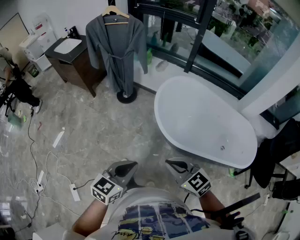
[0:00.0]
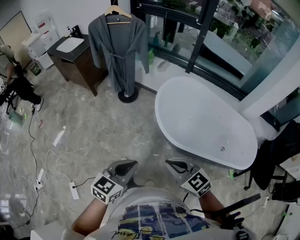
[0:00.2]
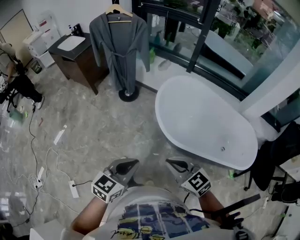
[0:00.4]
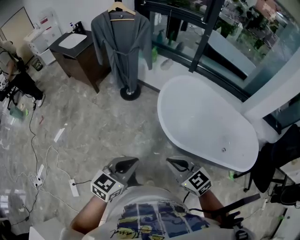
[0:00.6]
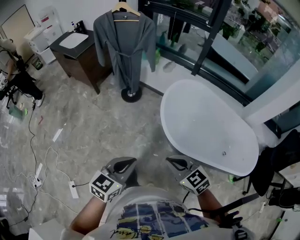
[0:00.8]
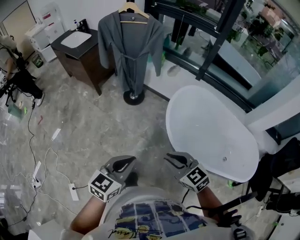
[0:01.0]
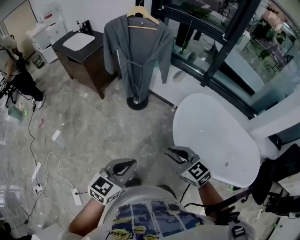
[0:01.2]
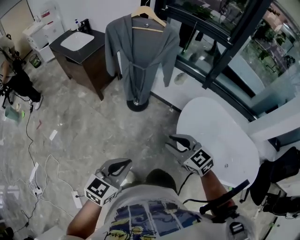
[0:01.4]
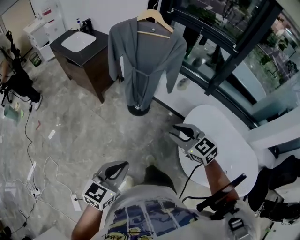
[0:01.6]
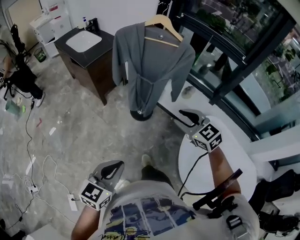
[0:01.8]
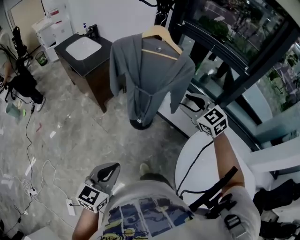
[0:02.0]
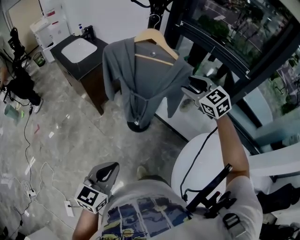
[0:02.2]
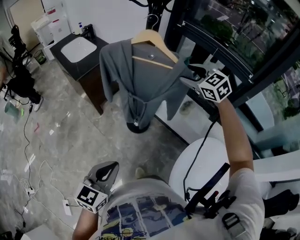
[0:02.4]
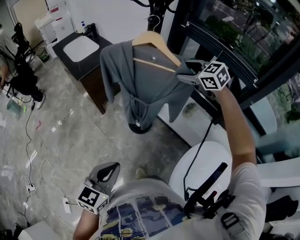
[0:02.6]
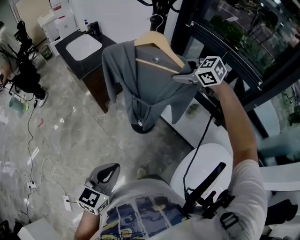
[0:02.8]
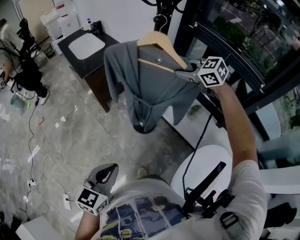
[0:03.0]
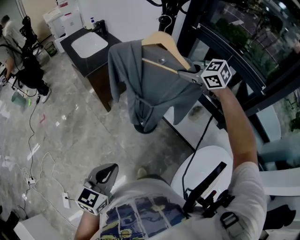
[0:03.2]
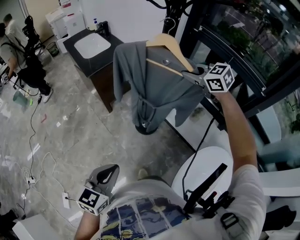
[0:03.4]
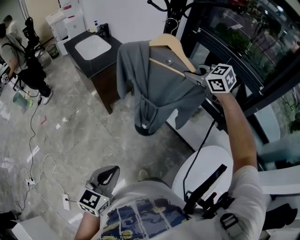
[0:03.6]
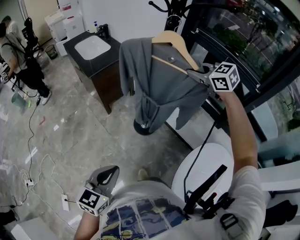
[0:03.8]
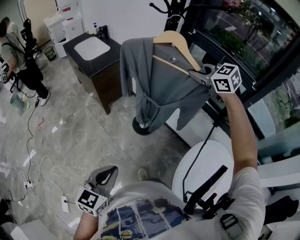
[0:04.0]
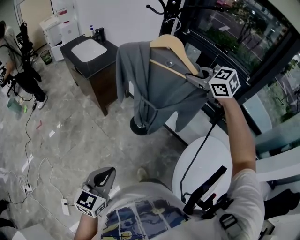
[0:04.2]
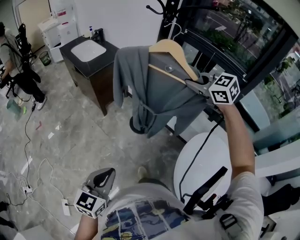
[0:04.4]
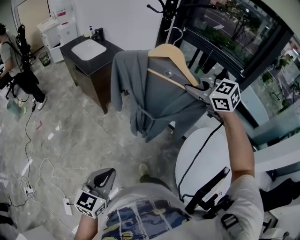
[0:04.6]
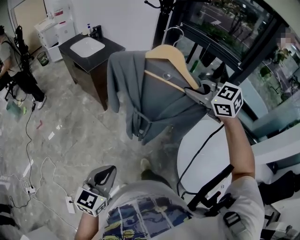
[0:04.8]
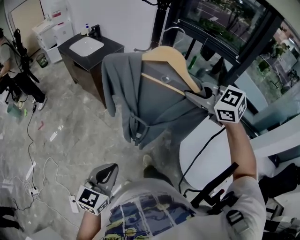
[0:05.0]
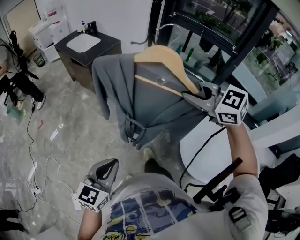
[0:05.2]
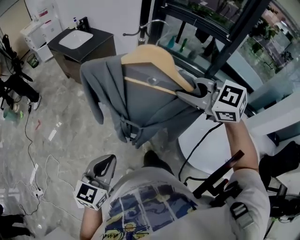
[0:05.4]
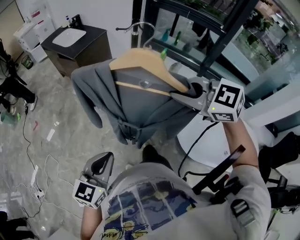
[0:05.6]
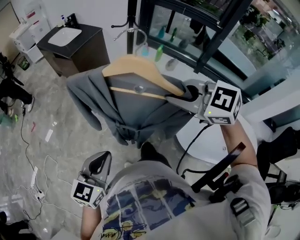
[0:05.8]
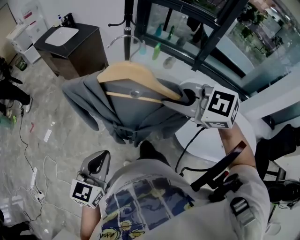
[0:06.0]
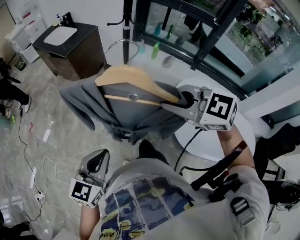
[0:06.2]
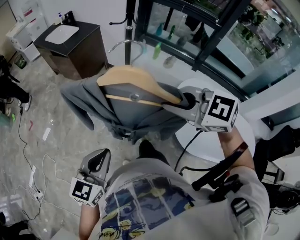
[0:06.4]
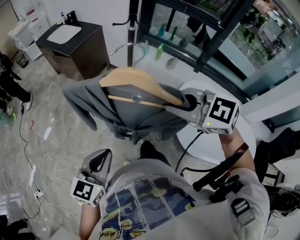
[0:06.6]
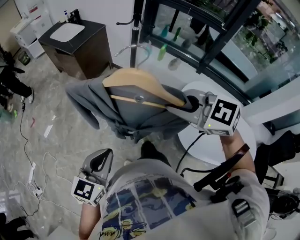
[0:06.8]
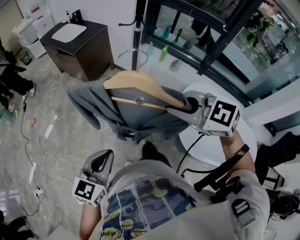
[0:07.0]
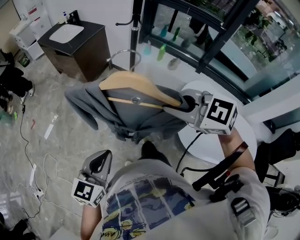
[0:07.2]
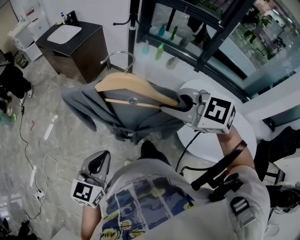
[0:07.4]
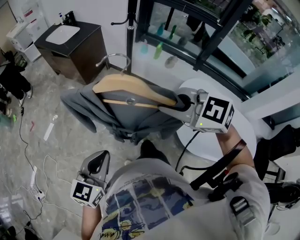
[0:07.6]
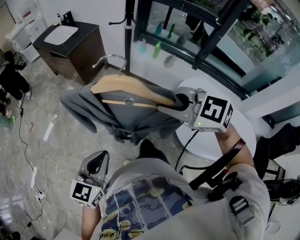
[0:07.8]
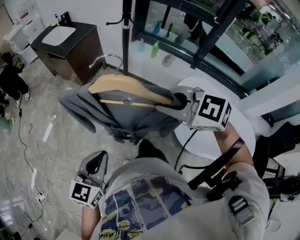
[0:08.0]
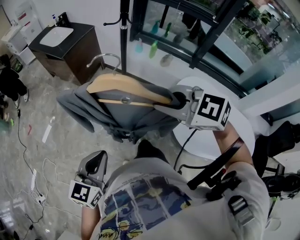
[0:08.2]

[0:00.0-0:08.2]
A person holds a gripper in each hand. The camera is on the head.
0:00.0 to 0:01.6: The left gripper is displaced forward and to the left by some 30 cm; the right gripper is displaced forward by approximately 40 cm, and opens up.
0:01.6 to 0:03.2: The left gripper moves forward, about 20 cm, and turns by about 20 degrees; the right gripper goes roughly 50 cm forward, rotates roughly 20 degrees, and opens, then closes again.
0:03.2 to 0:05.0: The left gripper shifts about 25 cm backward and to the left, while the right gripper is displaced backward by about 35 cm.
0:05.0 to 0:06.6: The right gripper goes about 20 cm backward and to the left.
0:06.6 to 0:08.2: The grippers make only small movements.

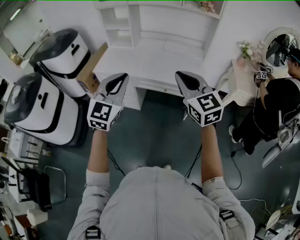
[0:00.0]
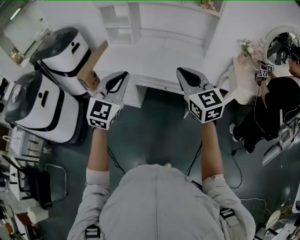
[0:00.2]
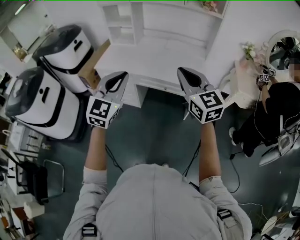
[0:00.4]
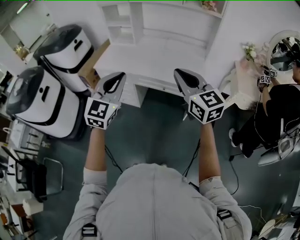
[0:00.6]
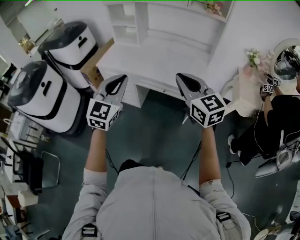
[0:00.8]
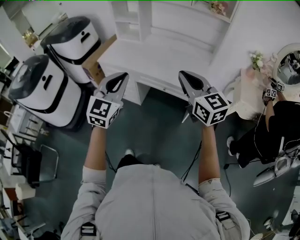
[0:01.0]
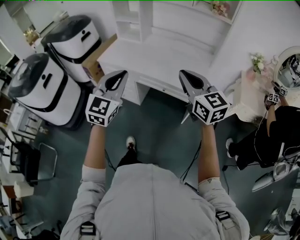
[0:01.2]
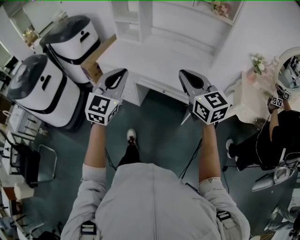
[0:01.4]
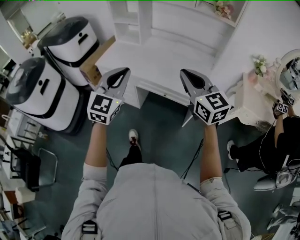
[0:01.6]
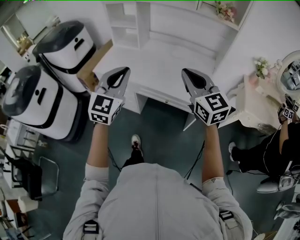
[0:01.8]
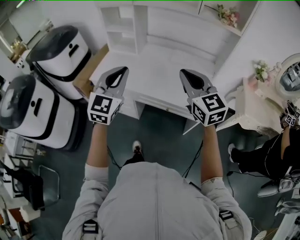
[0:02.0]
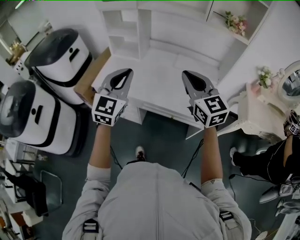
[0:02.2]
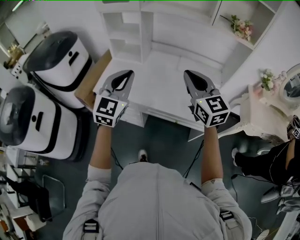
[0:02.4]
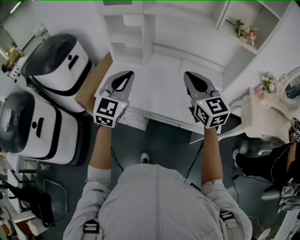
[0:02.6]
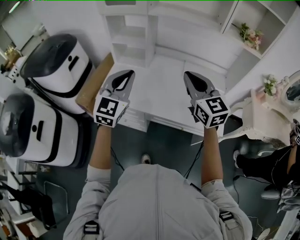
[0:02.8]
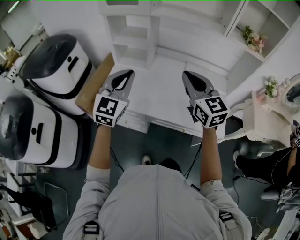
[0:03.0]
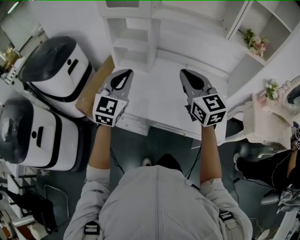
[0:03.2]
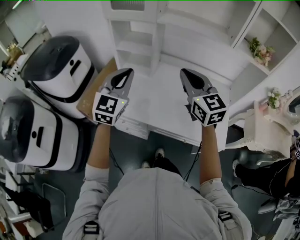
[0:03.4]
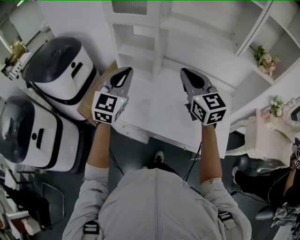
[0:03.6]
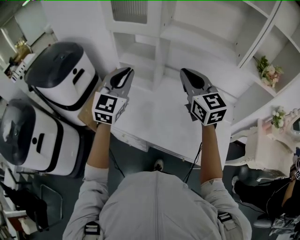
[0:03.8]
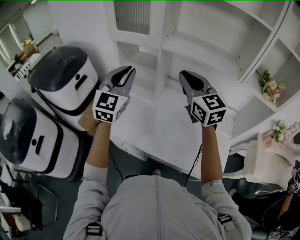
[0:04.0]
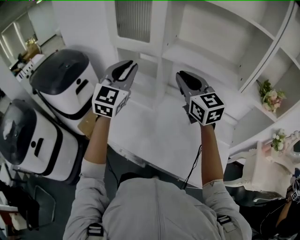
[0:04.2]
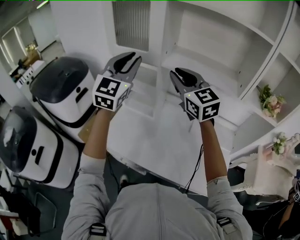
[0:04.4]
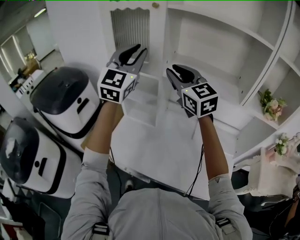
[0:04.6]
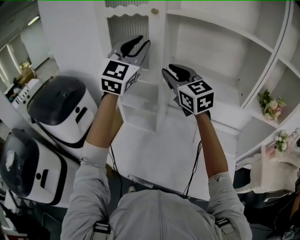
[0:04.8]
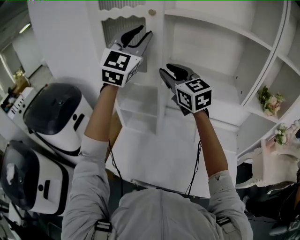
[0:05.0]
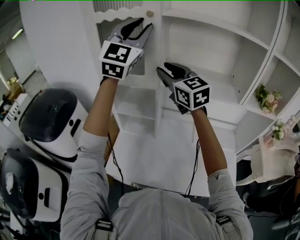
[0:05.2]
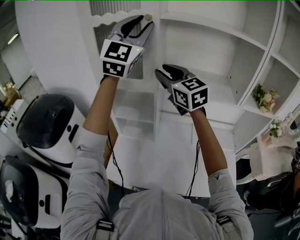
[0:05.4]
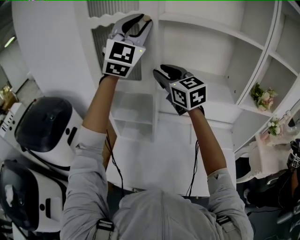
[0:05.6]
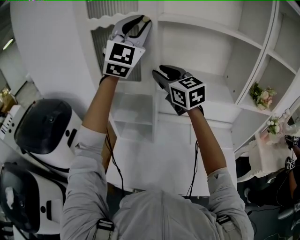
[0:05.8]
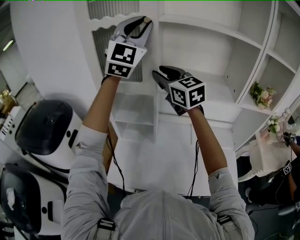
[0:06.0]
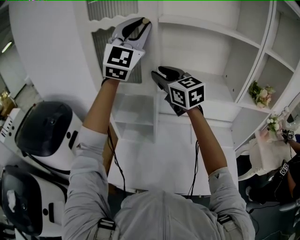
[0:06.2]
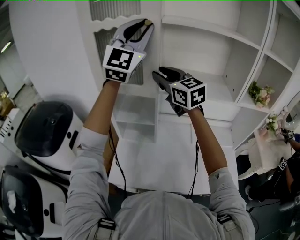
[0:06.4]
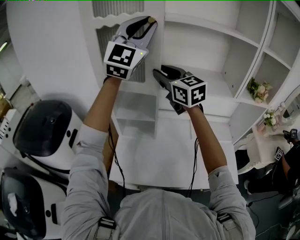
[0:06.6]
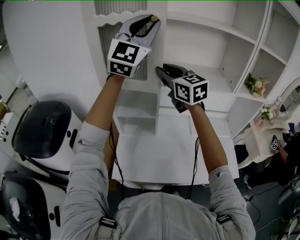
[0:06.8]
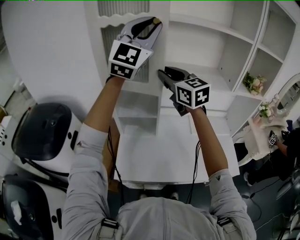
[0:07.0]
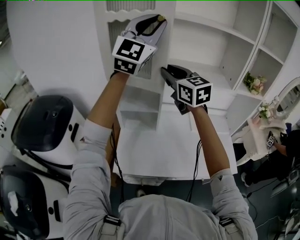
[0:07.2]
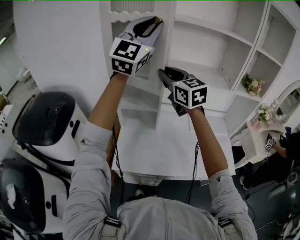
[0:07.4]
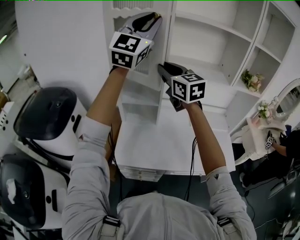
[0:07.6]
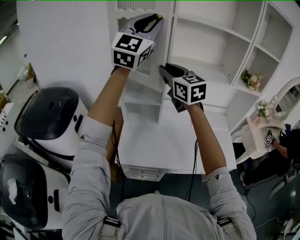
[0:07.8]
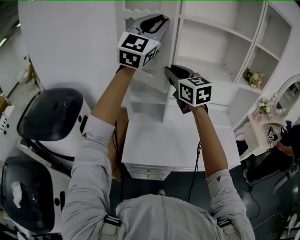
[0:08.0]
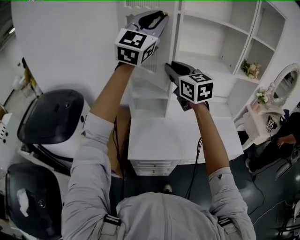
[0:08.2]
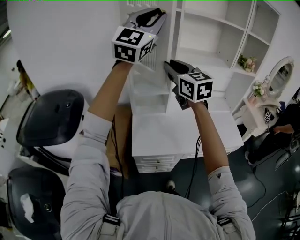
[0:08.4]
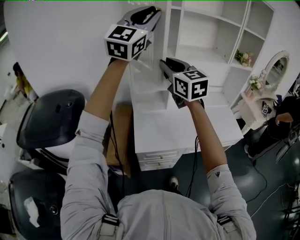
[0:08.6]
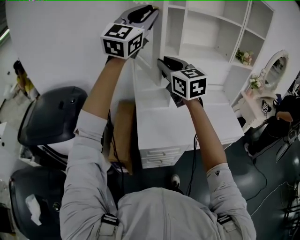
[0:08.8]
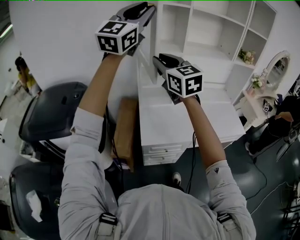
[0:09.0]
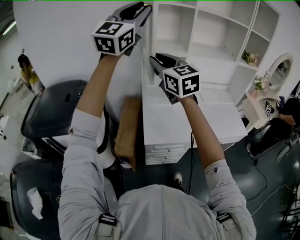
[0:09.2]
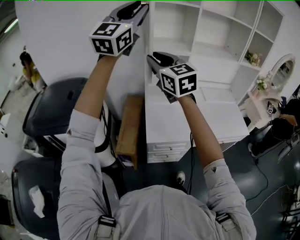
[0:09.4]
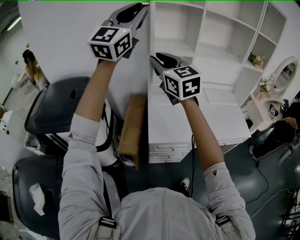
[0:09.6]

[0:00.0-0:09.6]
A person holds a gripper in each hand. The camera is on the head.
0:00.0 to 0:01.6: Both grippers move forward and to the right, about 10 cm.
0:01.6 to 0:03.2: Both grippers travel together forward and to the left, about 35 cm.
0:03.2 to 0:04.8: The left gripper travels upward and forward by about 40 cm, rotates roughly 20 degrees, and opens, while the right gripper is displaced forward and upward by about 30 cm, and opens its fingers.
0:04.8 to 0:06.4: The right gripper shifts by approximately 5 cm; the left gripper moves upward, approximately 10 cm, and turns by roughly 20 degrees.
0:06.4 to 0:08.0: The left gripper is displaced backward and to the left by approximately 15 cm, while the right gripper is displaced backward by some 15 cm.
0:08.0 to 0:09.6: Both grippers move to the left and backward, some 25 cm.

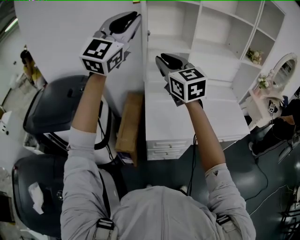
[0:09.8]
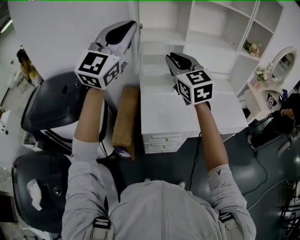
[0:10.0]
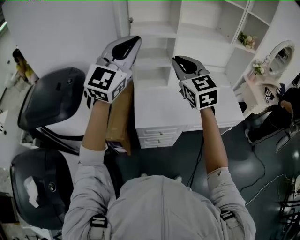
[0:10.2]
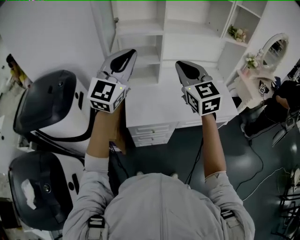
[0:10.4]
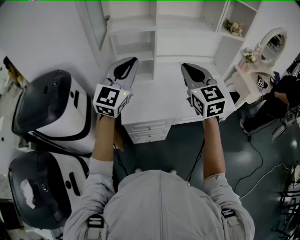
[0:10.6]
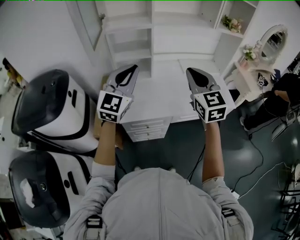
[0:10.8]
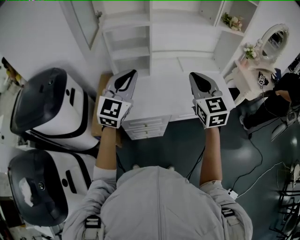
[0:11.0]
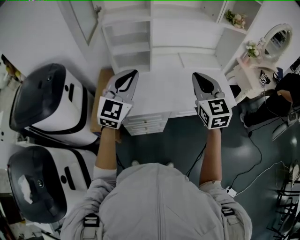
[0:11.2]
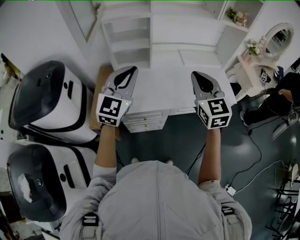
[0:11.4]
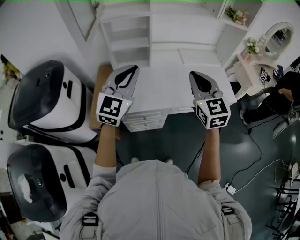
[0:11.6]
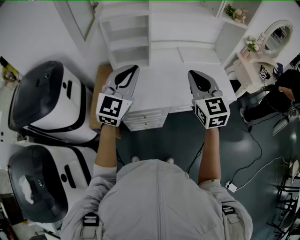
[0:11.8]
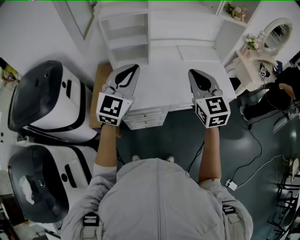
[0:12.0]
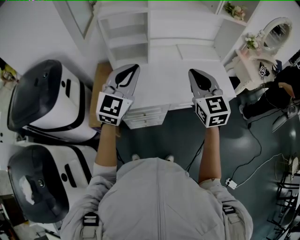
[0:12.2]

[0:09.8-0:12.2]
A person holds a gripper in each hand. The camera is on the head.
0:09.8 to 0:11.0: The right gripper travels to the right and downward by approximately 35 cm, and swivels approximately 20 degrees. Meanwhile the left gripper goes some 35 cm downward and to the right, and rotates about 30 degrees.
0:11.0 to 0:12.2: The grippers stay close to where they were, moving slightly.

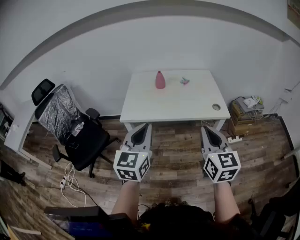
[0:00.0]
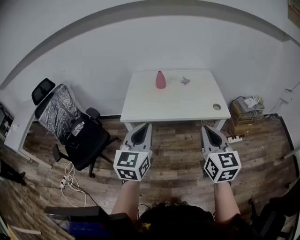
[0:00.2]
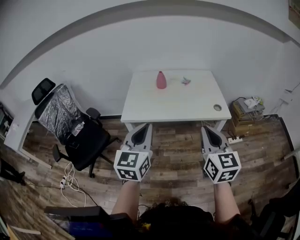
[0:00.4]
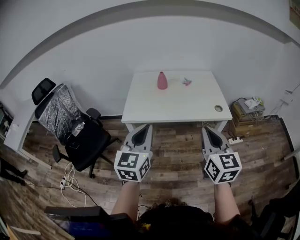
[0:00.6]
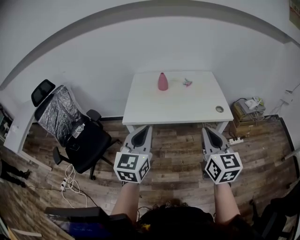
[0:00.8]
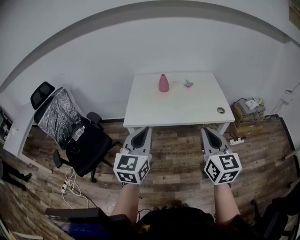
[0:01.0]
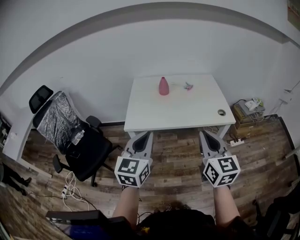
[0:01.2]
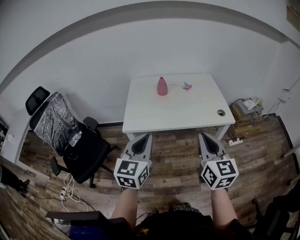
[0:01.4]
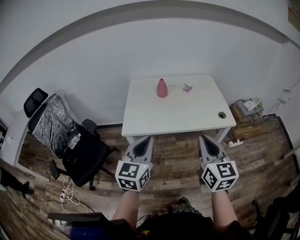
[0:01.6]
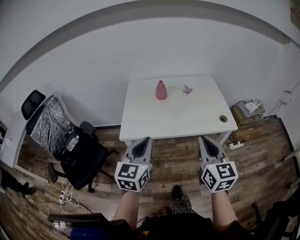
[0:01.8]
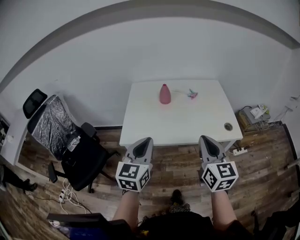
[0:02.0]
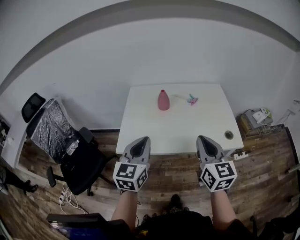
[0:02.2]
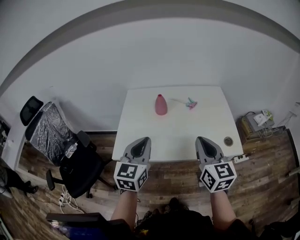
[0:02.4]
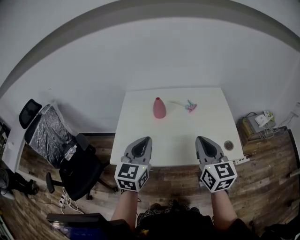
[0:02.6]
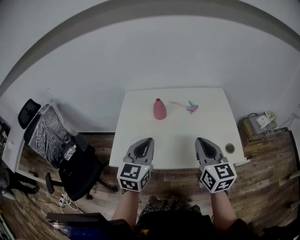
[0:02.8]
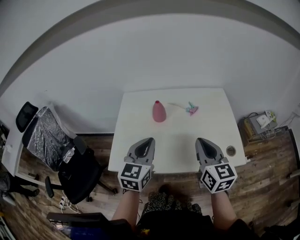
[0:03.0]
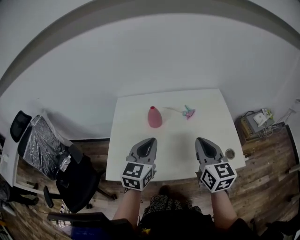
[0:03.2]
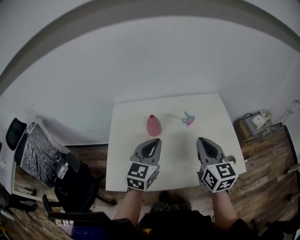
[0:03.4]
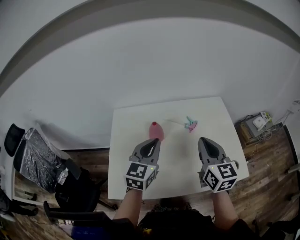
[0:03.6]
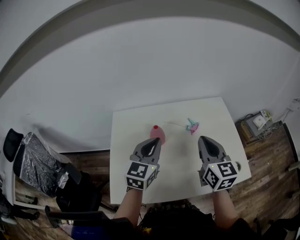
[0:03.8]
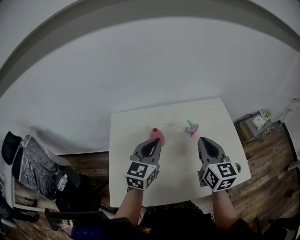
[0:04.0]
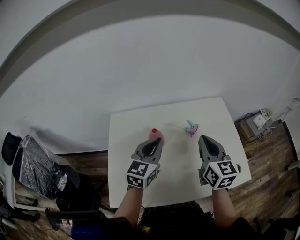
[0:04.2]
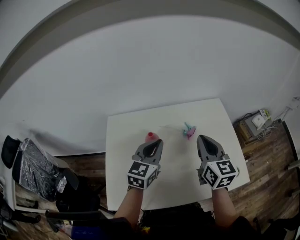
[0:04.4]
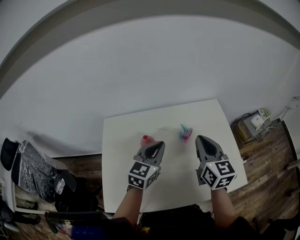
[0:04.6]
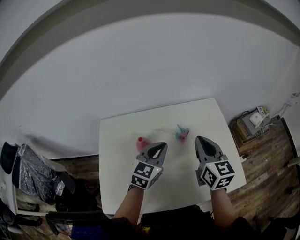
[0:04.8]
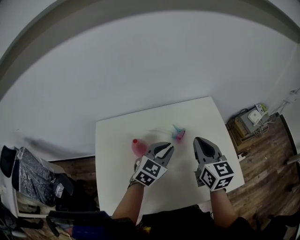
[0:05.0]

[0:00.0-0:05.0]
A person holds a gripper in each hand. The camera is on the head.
0:00.0 to 0:01.6: The right gripper heads to the left and forward, covering some 10 cm, while the left gripper travels forward and to the left by approximately 10 cm.
0:01.6 to 0:03.4: Both grippers travel together forward, approximately 35 cm.
0:03.4 to 0:05.0: The right gripper moves forward, some 15 cm; the left gripper moves forward, to the right and downward, about 20 cm, and swivels approximately 30 degrees.
